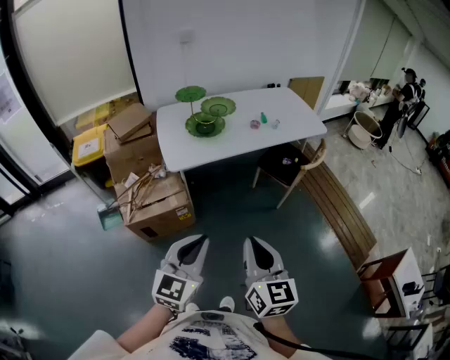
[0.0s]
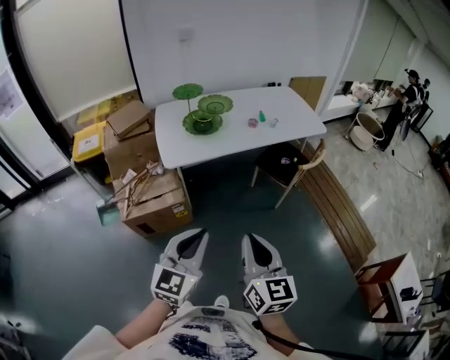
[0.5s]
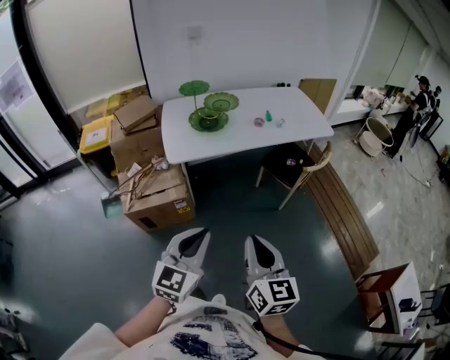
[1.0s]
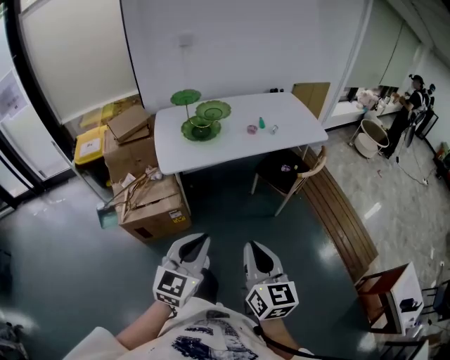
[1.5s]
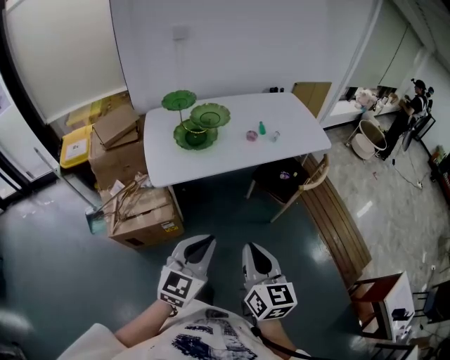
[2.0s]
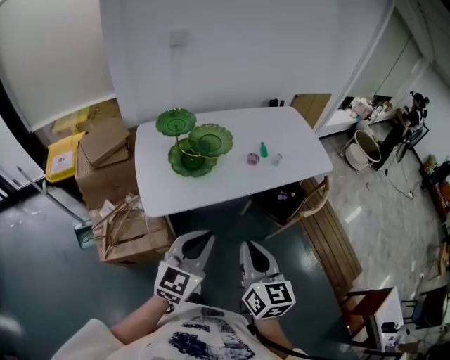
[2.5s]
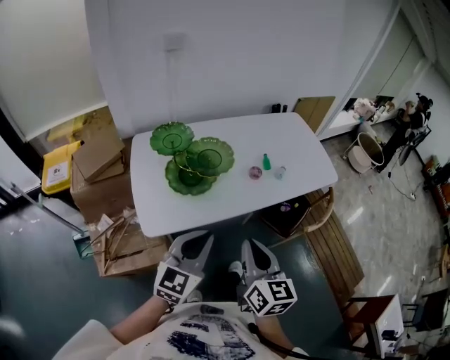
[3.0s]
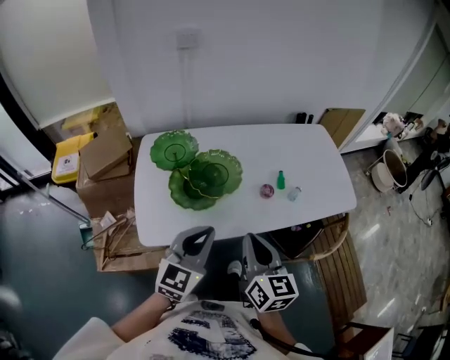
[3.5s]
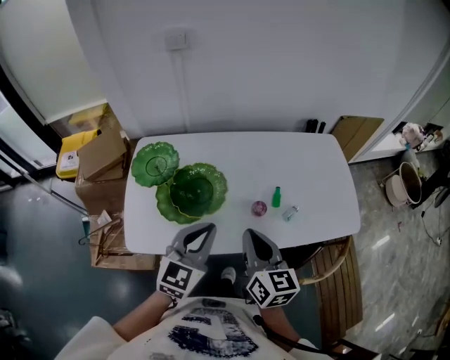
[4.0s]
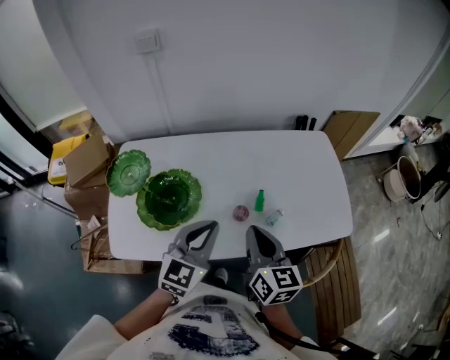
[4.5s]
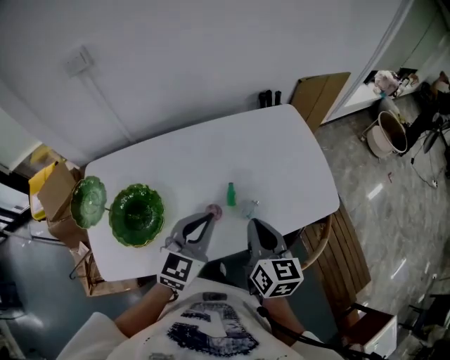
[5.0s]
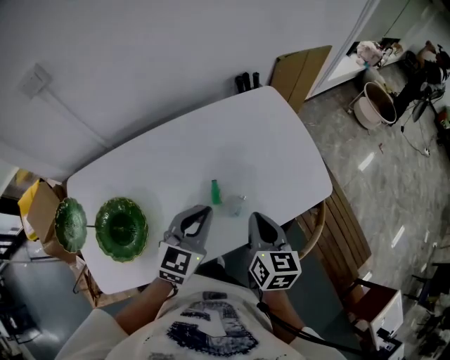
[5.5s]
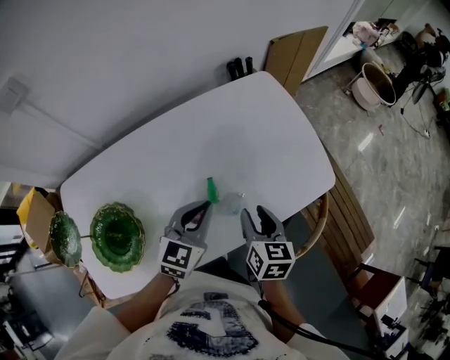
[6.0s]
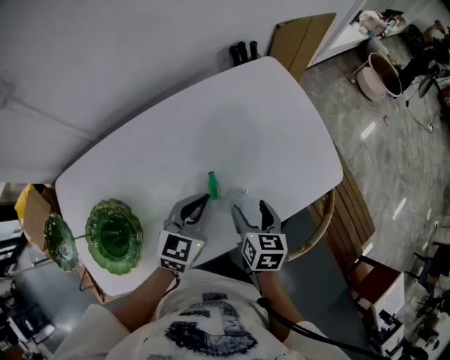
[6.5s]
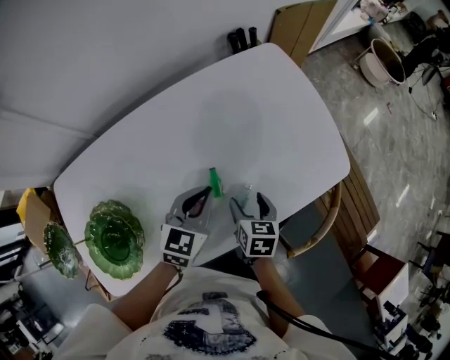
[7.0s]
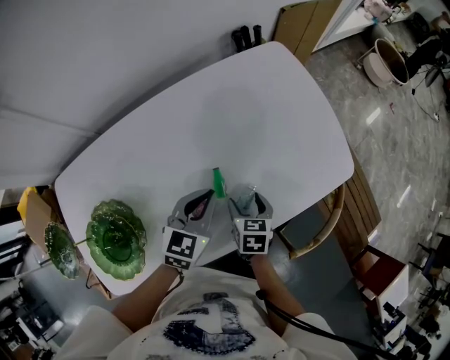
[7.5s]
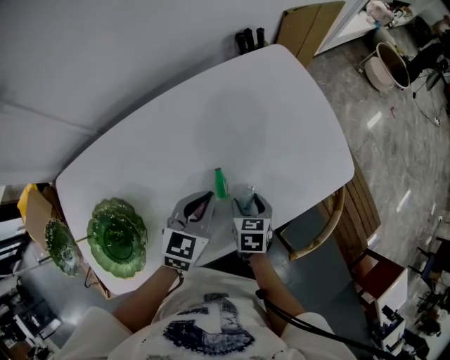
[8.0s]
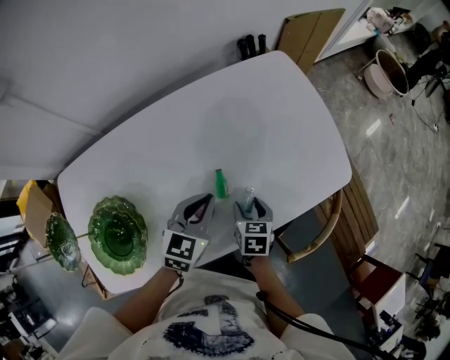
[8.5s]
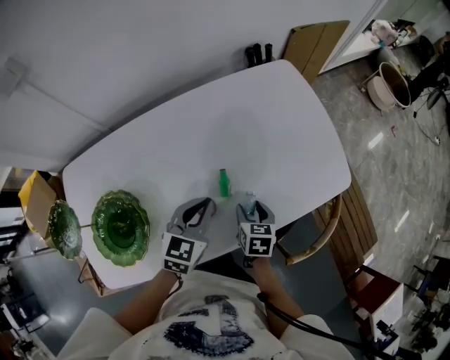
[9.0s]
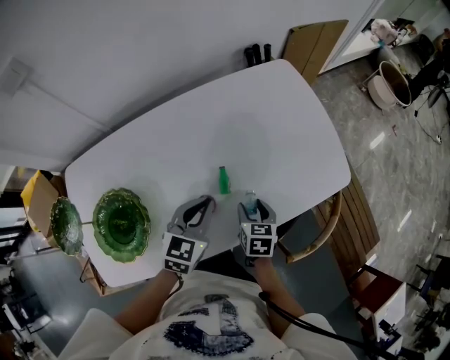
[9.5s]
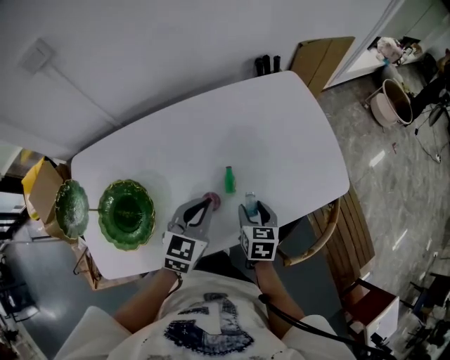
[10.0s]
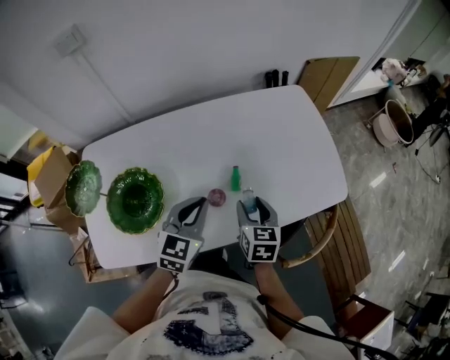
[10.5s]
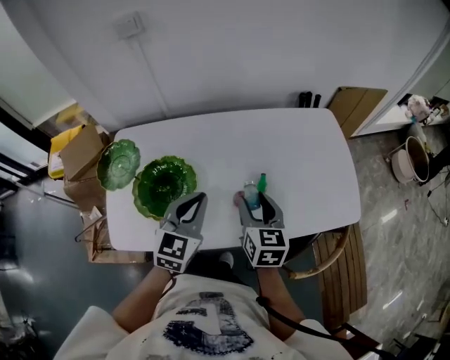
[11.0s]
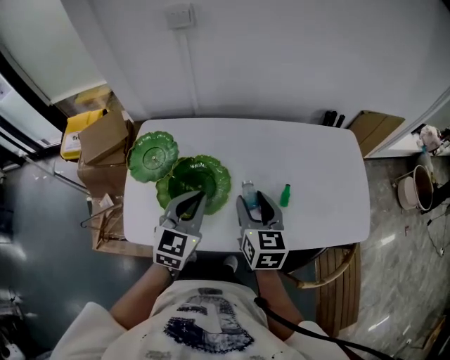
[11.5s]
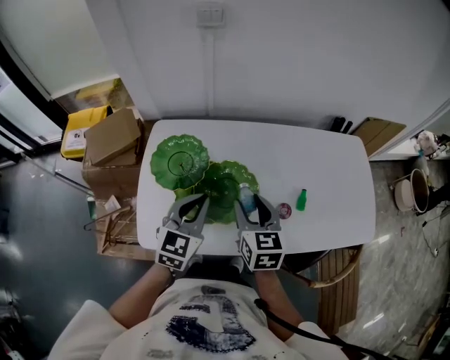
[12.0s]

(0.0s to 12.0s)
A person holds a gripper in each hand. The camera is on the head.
0.0s - 2.0s: The left gripper is displaced forward and to the right by about 15 cm; the right gripper is displaced forward by approximately 15 cm.
2.0s - 4.0s: The pair of grippers is taken forward, roughly 50 cm.
4.0s - 6.0s: The right gripper heads to the right, forward and downward, covering about 30 cm, swivels approximately 30 degrees, and opens its fingers, while the left gripper is displaced forward, to the right and downward by some 30 cm, and rotates approximately 20 degrees.
6.0s - 8.0s: The right gripper goes some 15 cm downward, and turns by approximately 20 degrees; the left gripper shifts roughly 5 cm downward.
8.0s - 10.0s: The left gripper is displaced backward by approximately 5 cm; the right gripper travels upward by about 5 cm.
10.0s - 12.0s: The right gripper shifts approximately 35 cm to the left and upward, and swivels roughly 30 degrees; the left gripper goes about 30 cm to the left, and rotates roughly 20 degrees.

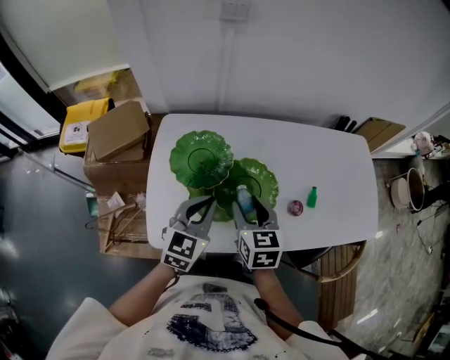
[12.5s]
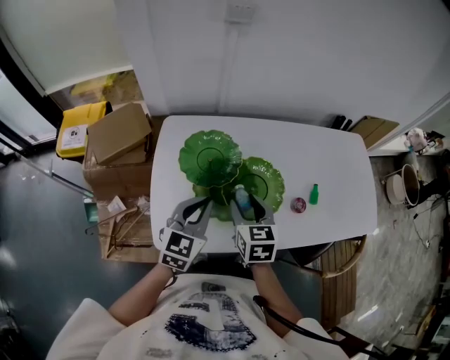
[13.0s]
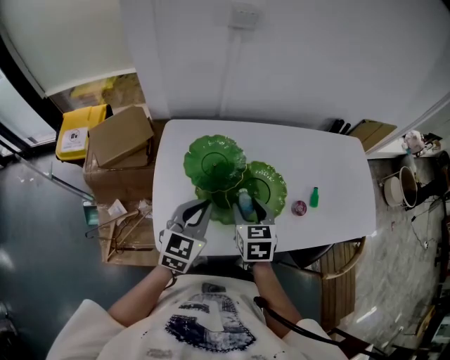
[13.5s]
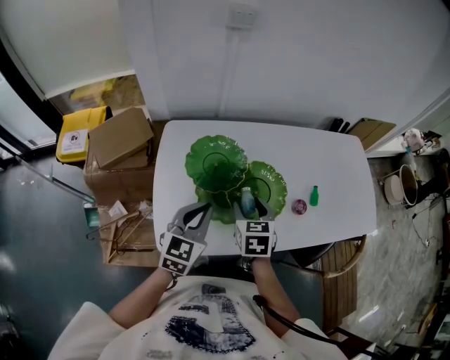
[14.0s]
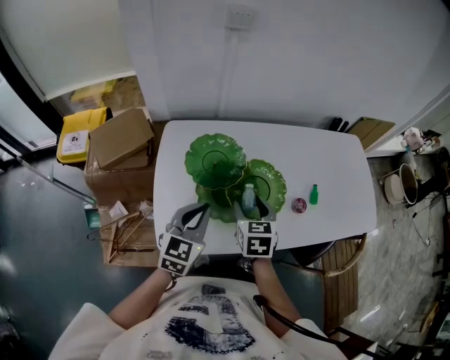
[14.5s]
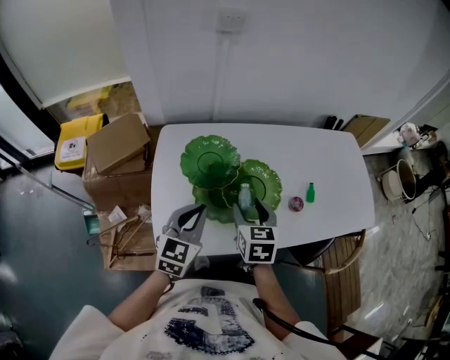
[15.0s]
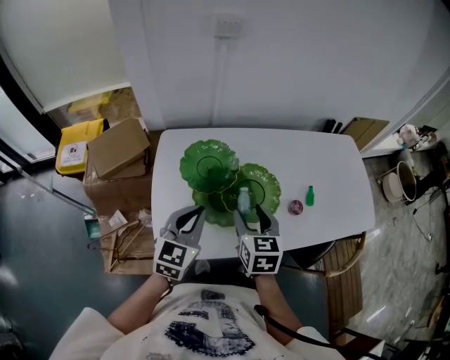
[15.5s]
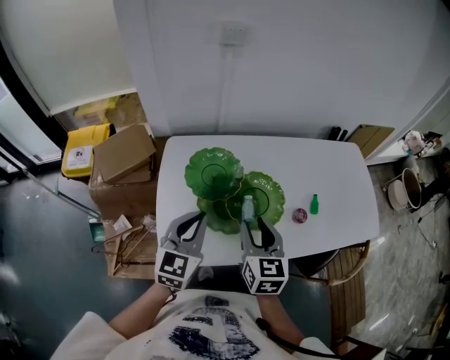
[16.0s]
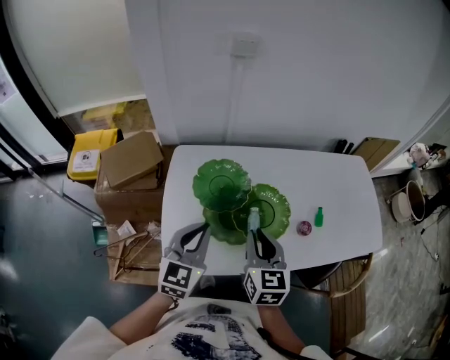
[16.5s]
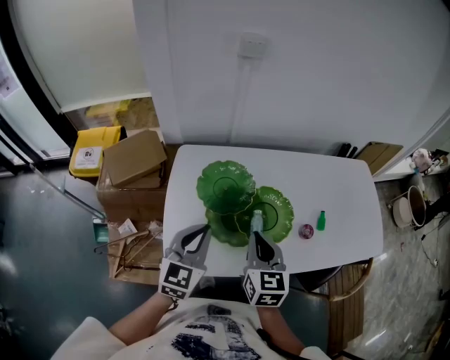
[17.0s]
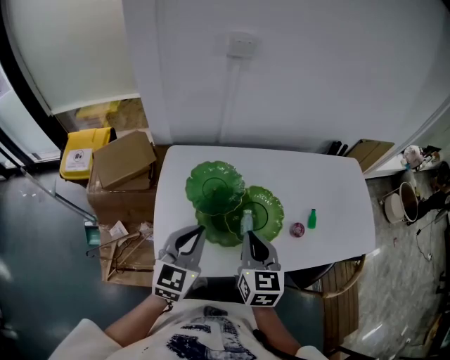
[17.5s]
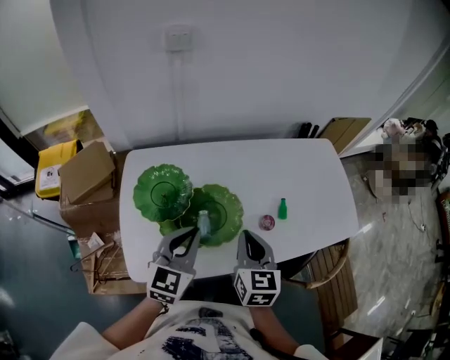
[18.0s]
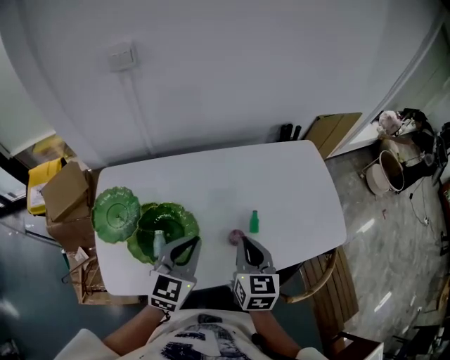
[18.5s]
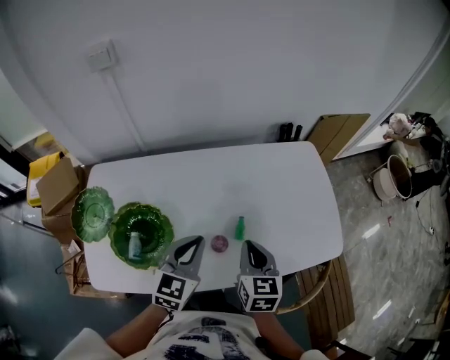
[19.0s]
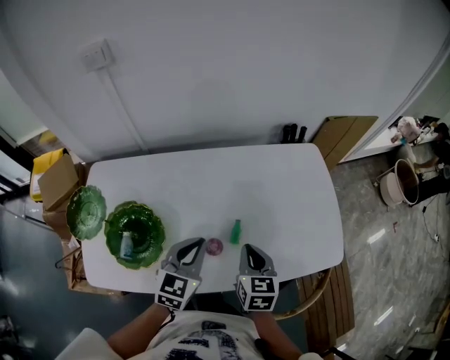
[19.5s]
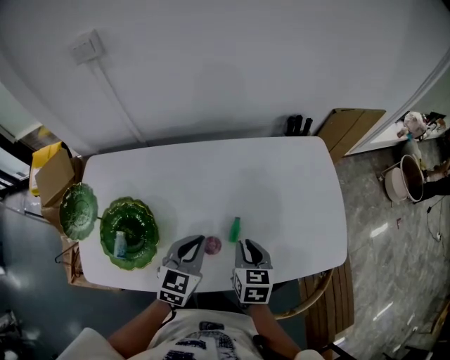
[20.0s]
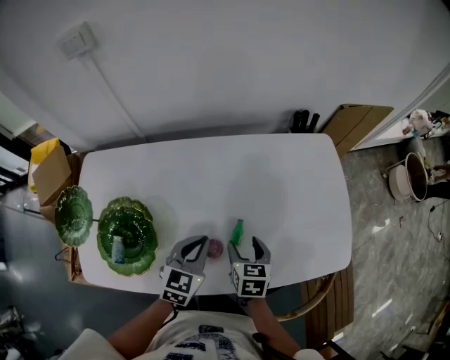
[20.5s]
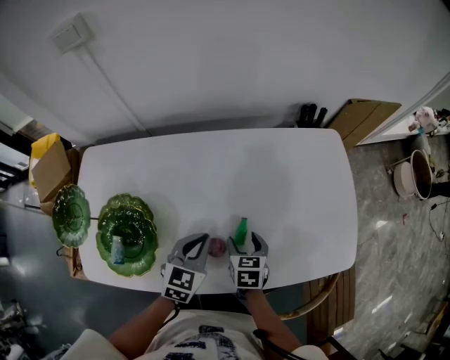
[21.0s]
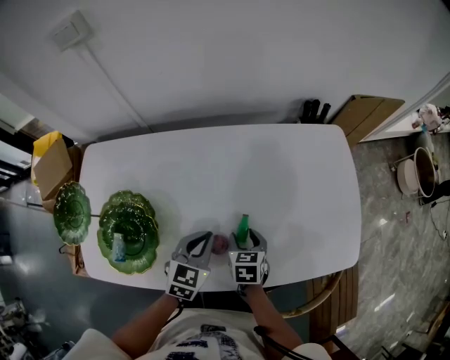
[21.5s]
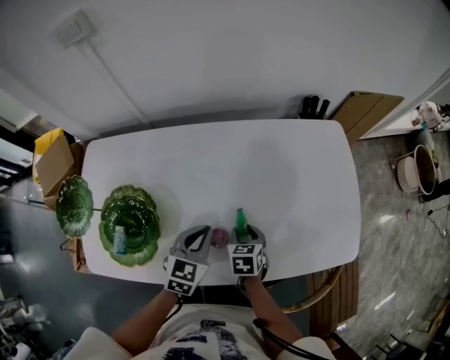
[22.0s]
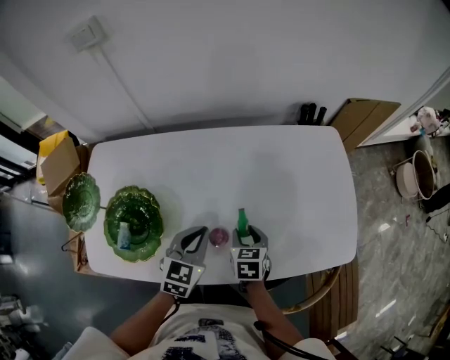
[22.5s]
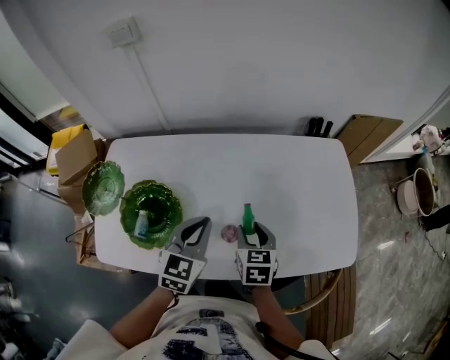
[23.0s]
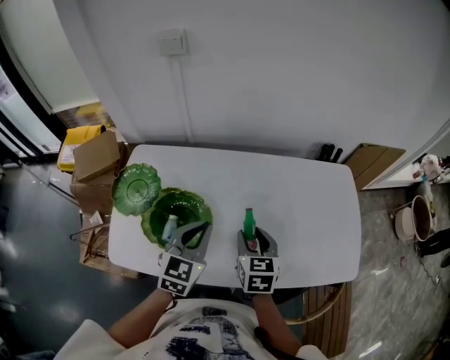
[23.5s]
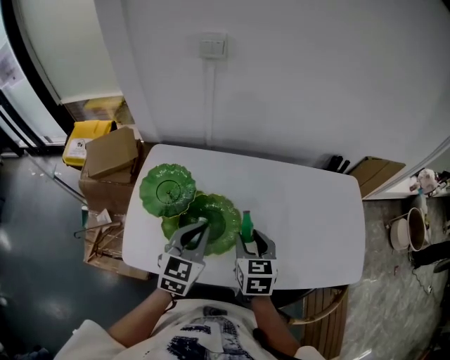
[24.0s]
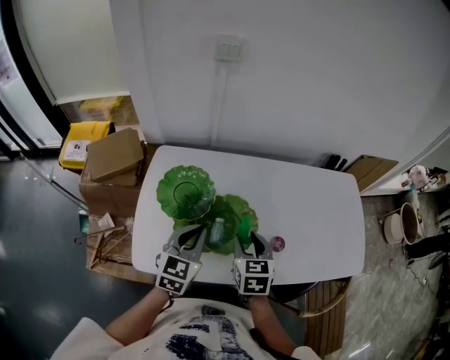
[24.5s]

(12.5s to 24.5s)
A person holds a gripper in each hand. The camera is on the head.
12.5s - 14.5s: The left gripper heads to the left, covering about 5 cm.
14.5s - 16.5s: The left gripper changes place by roughly 5 cm; the right gripper goes roughly 10 cm upward, and closes up.
16.5s - 18.5s: The grippers both shift to the right by some 25 cm.
18.5s - 20.5s: The grippers both shift downward, to the right and forward by about 20 cm. The right gripper changes its angle by approximately 20 degrees, and opens up.
20.5s - 22.5s: The right gripper closes its fingers.
22.5s - 24.5s: The left gripper travels to the left by approximately 30 cm; the right gripper is displaced to the left and upward by approximately 30 cm.

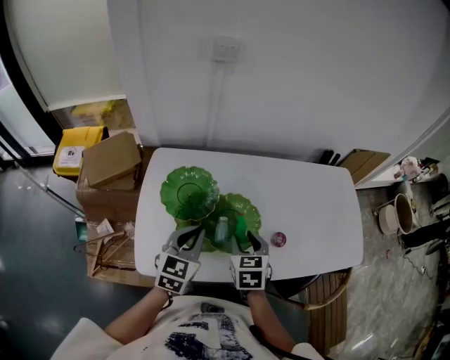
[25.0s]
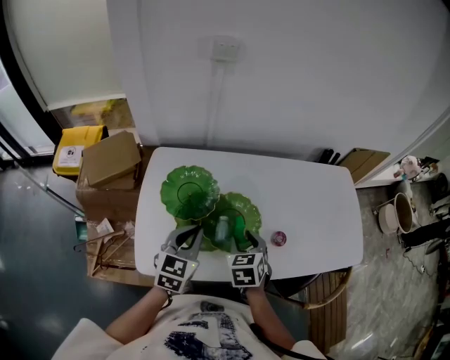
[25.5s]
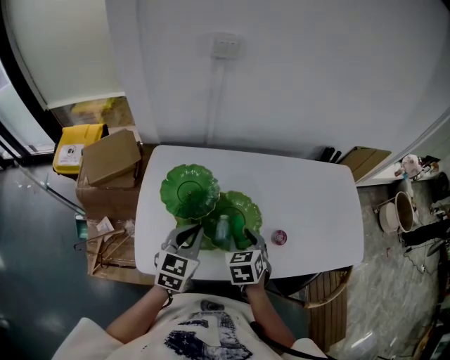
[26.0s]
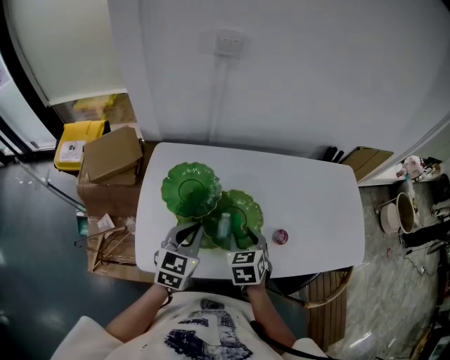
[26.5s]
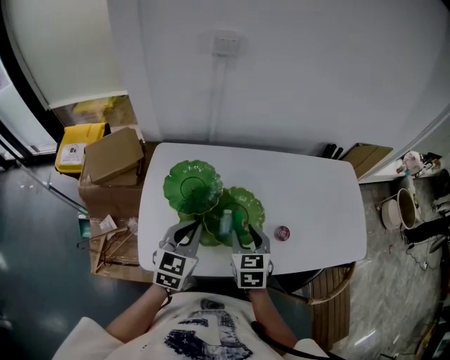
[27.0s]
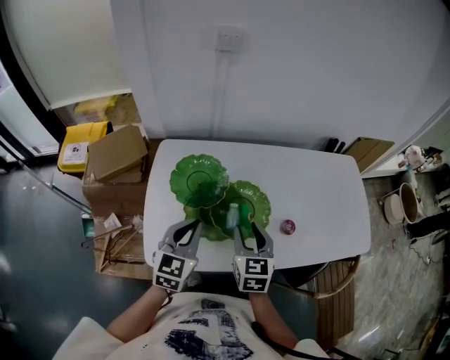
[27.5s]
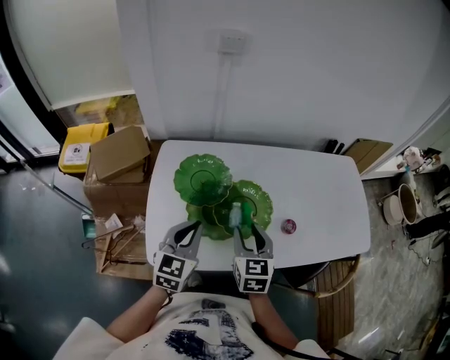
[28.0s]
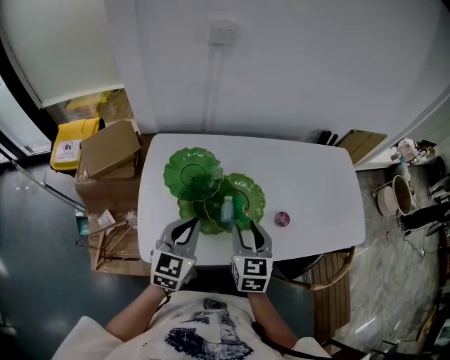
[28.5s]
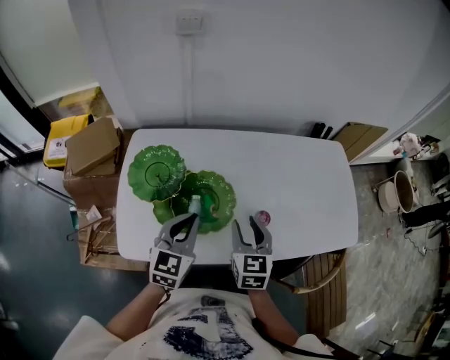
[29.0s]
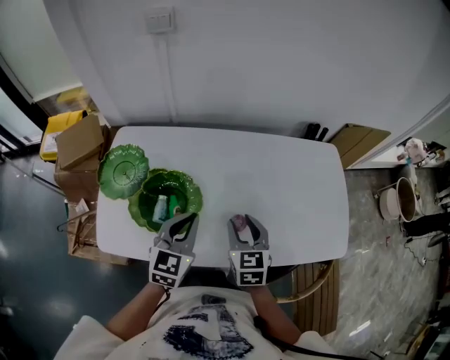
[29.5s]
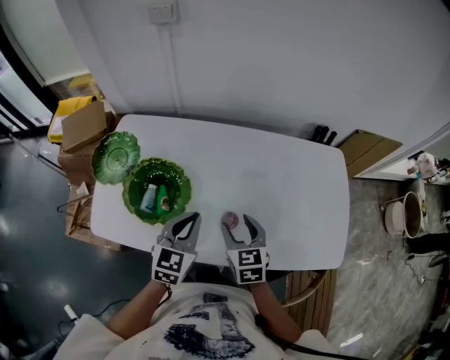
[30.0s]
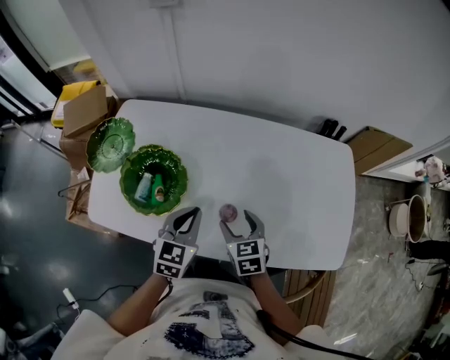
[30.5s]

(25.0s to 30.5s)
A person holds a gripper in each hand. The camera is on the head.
25.0s - 28.5s: There are only small adjustments of the grippers.
28.5s - 30.5s: The right gripper shifts some 25 cm to the right and downward, rotates approximately 30 degrees, and opens. Meanwhile the left gripper heads to the right, covering roughly 25 cm.
